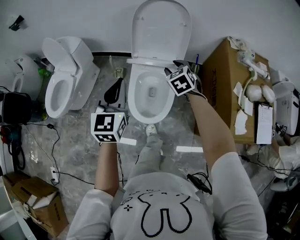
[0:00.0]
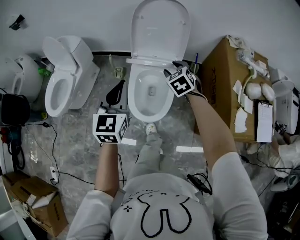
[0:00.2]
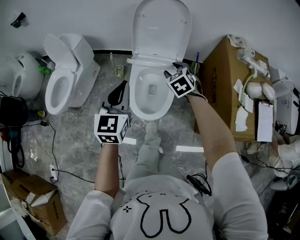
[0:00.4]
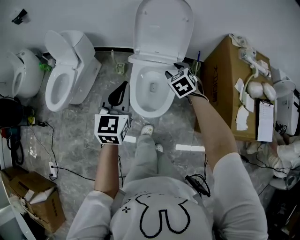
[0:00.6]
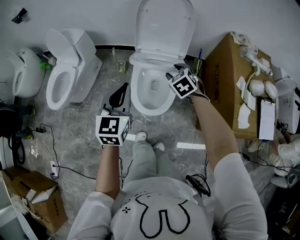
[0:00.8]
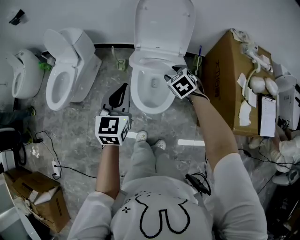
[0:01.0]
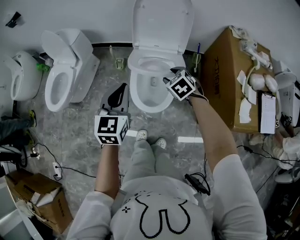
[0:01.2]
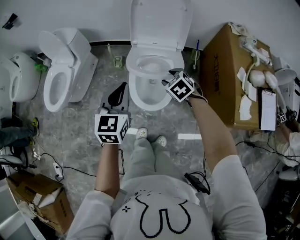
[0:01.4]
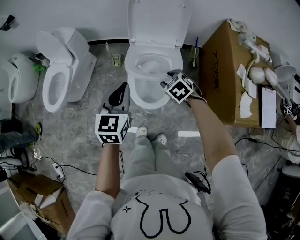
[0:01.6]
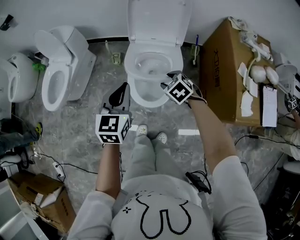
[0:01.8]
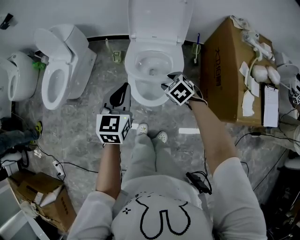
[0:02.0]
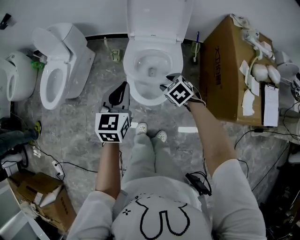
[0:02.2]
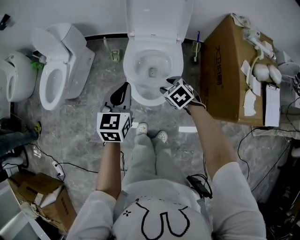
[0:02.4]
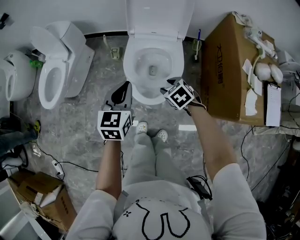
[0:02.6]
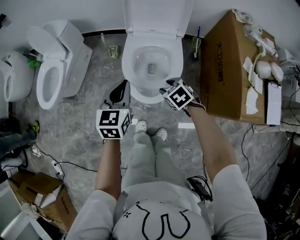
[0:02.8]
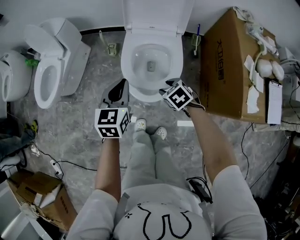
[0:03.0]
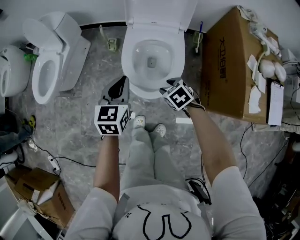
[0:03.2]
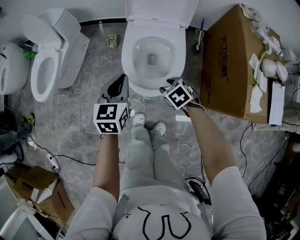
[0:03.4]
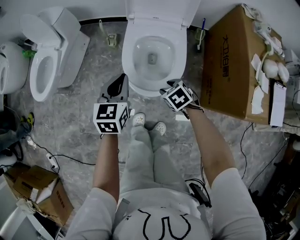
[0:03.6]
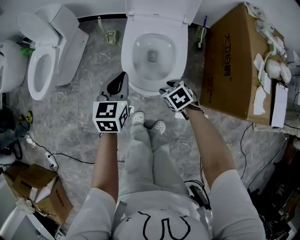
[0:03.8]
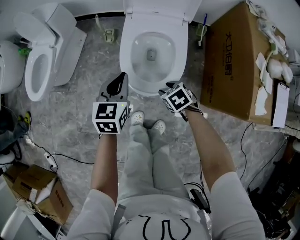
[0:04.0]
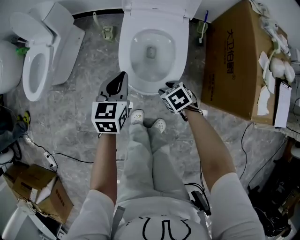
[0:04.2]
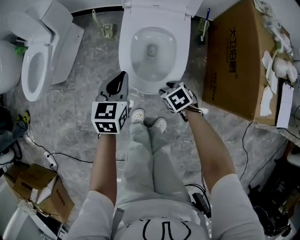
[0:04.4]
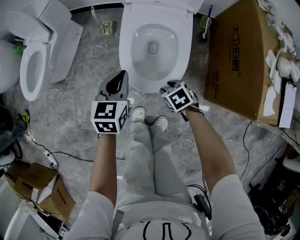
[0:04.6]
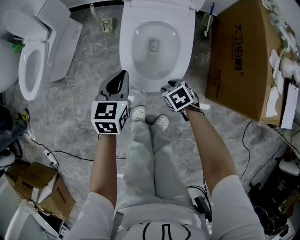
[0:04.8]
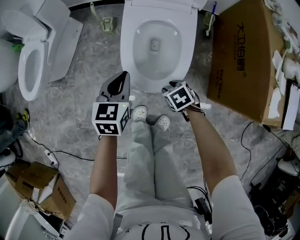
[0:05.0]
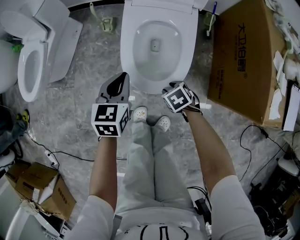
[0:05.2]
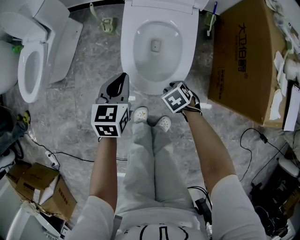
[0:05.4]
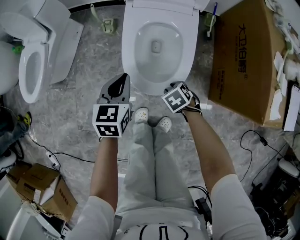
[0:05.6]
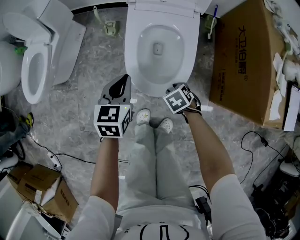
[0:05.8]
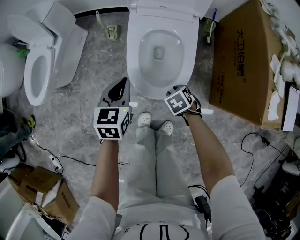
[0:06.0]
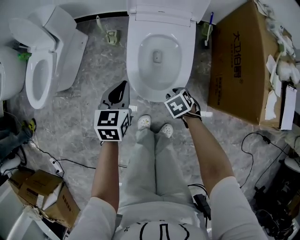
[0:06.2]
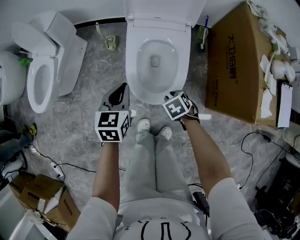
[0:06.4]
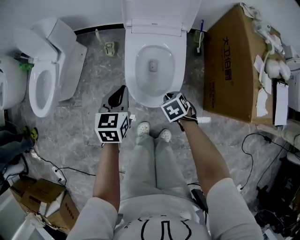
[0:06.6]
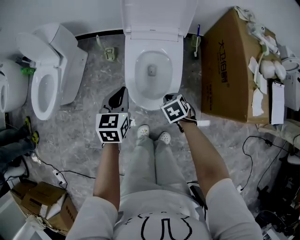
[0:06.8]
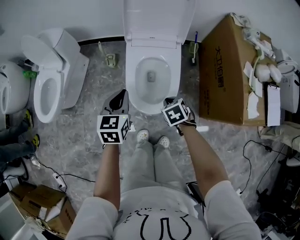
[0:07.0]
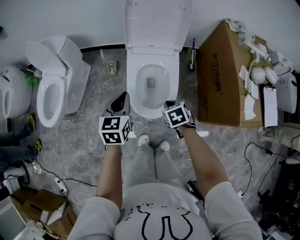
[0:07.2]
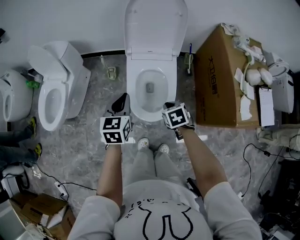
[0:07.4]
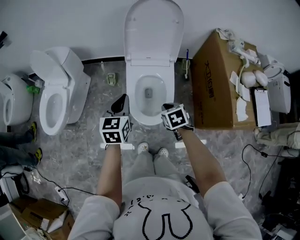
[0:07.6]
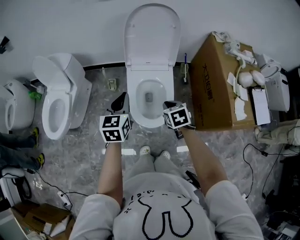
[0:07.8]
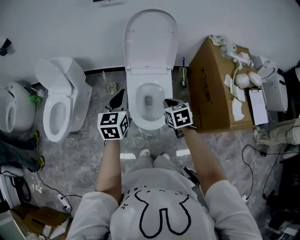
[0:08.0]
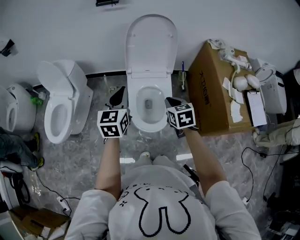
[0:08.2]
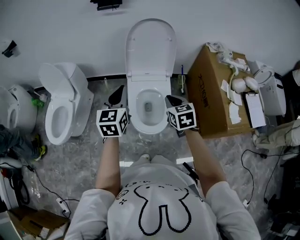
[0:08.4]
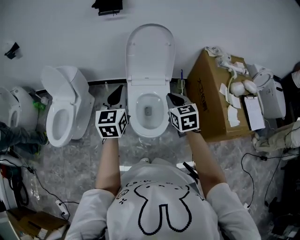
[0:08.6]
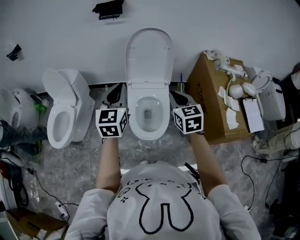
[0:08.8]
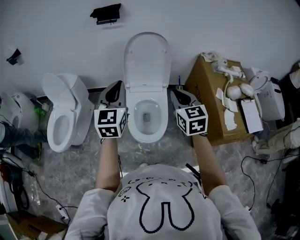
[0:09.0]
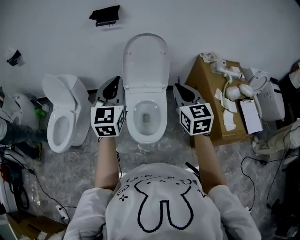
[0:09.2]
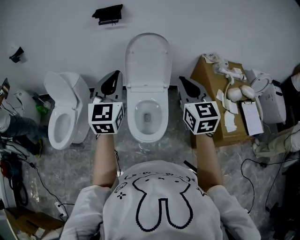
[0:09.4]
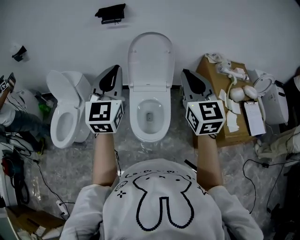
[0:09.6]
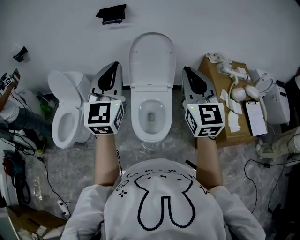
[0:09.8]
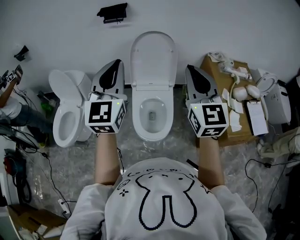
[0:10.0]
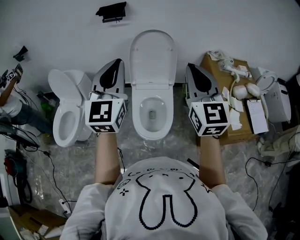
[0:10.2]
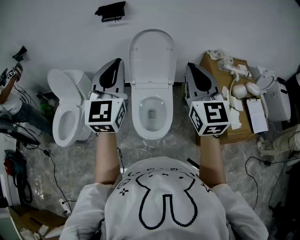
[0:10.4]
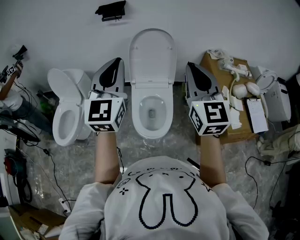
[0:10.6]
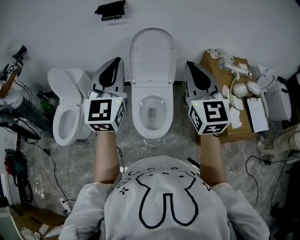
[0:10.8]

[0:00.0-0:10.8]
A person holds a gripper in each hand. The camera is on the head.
0:00.0 to 0:01.6: The left gripper moves downward, roughly 5 cm. Meanwhile the right gripper shifts roughly 15 cm backward and downward.
0:01.6 to 0:03.0: The right gripper is displaced downward and backward by roughly 10 cm, while the left gripper shifts approximately 10 cm downward.
0:03.0 to 0:04.6: Both grippers travel together downward, about 15 cm.
0:04.6 to 0:06.2: The grippers make only small movements.
0:06.2 to 0:07.8: The grippers both shift upward by approximately 25 cm. The right gripper rotates approximately 30 degrees, and closes its fingers.
0:07.8 to 0:09.2: The two grippers go approximately 25 cm upward. The left gripper changes its angle by approximately 30 degrees; the right gripper tips its fingers upward by approximately 40 degrees.
0:09.2 to 0:10.8: Both grippers travel together upward, approximately 10 cm.

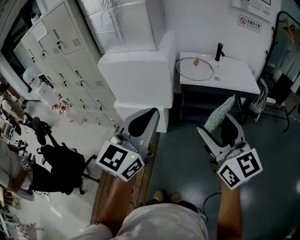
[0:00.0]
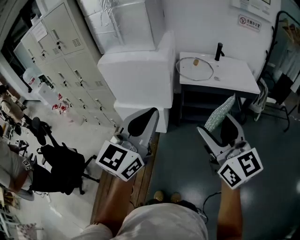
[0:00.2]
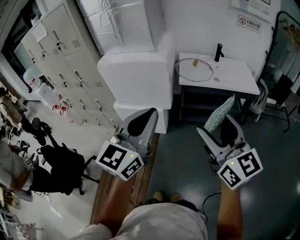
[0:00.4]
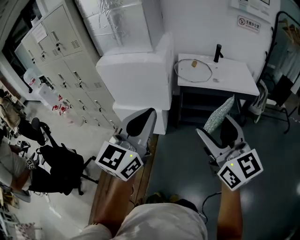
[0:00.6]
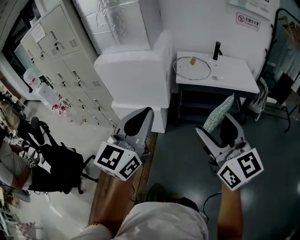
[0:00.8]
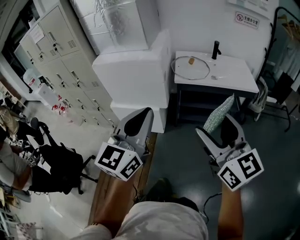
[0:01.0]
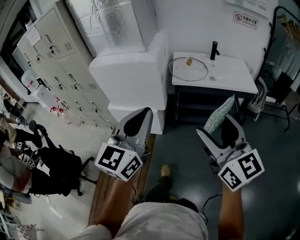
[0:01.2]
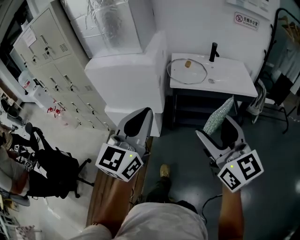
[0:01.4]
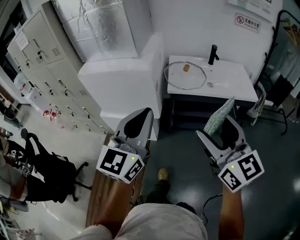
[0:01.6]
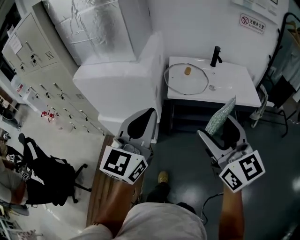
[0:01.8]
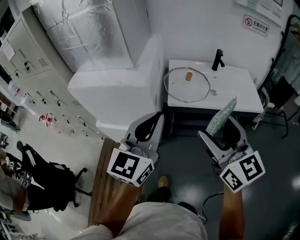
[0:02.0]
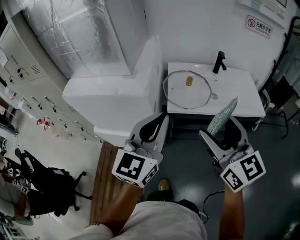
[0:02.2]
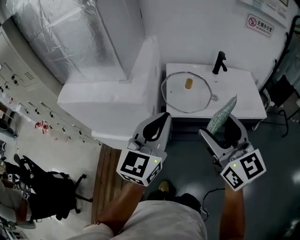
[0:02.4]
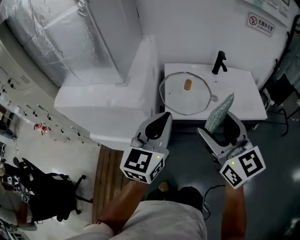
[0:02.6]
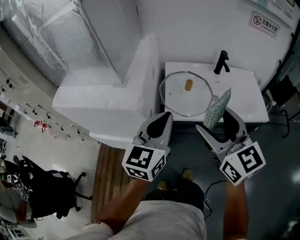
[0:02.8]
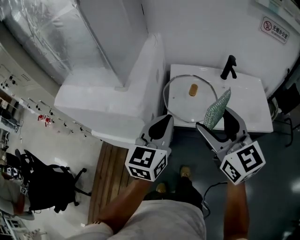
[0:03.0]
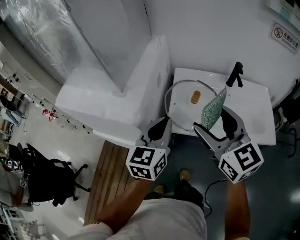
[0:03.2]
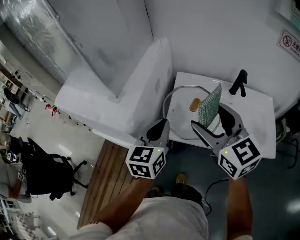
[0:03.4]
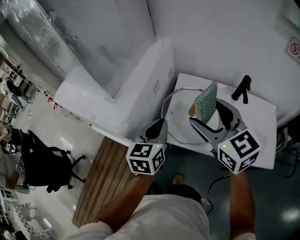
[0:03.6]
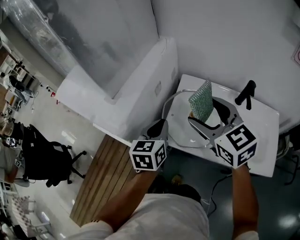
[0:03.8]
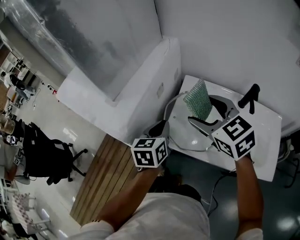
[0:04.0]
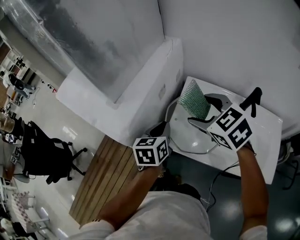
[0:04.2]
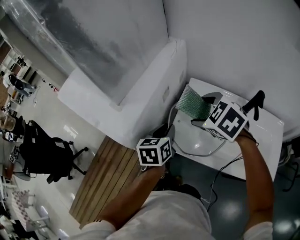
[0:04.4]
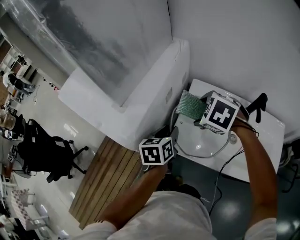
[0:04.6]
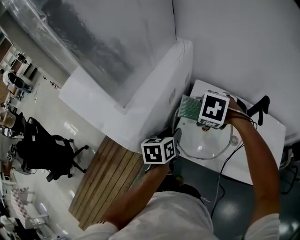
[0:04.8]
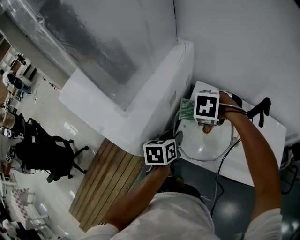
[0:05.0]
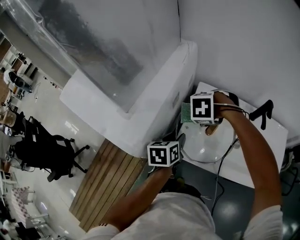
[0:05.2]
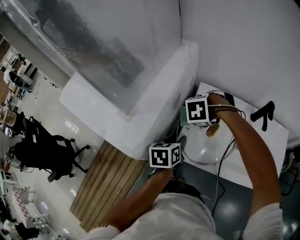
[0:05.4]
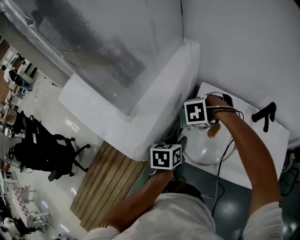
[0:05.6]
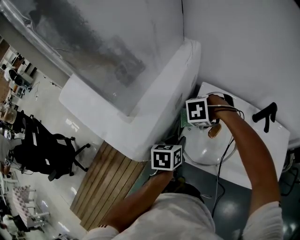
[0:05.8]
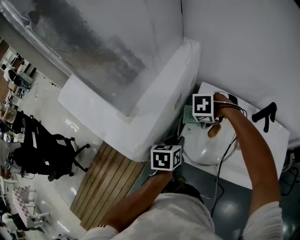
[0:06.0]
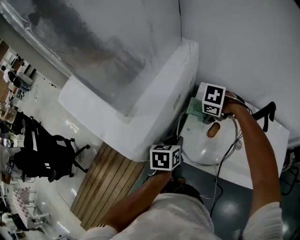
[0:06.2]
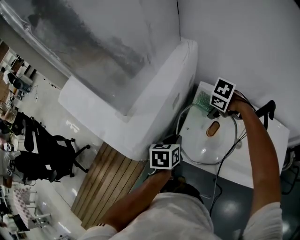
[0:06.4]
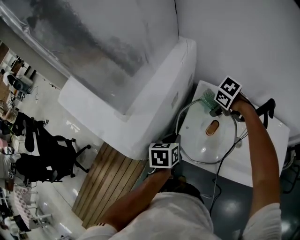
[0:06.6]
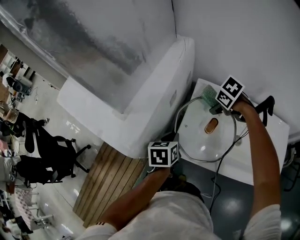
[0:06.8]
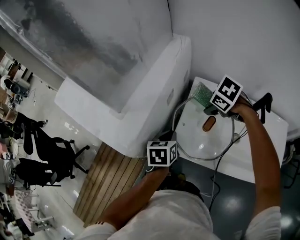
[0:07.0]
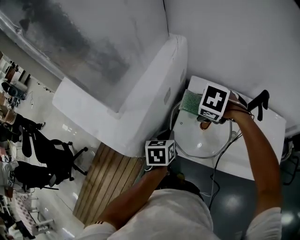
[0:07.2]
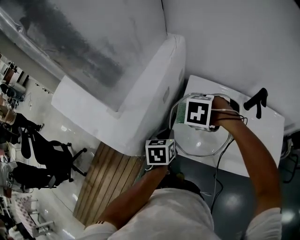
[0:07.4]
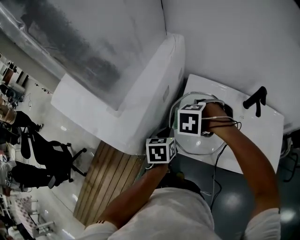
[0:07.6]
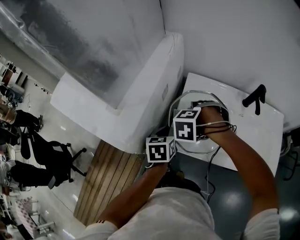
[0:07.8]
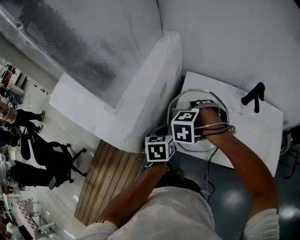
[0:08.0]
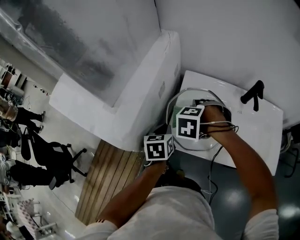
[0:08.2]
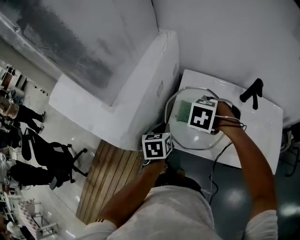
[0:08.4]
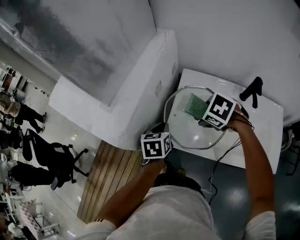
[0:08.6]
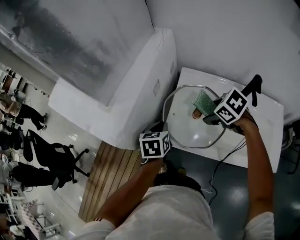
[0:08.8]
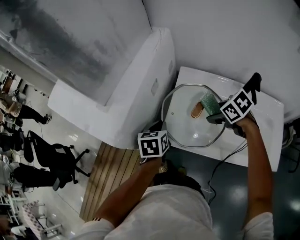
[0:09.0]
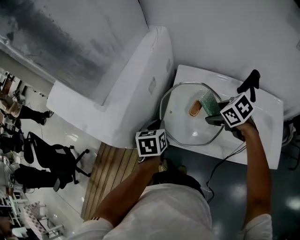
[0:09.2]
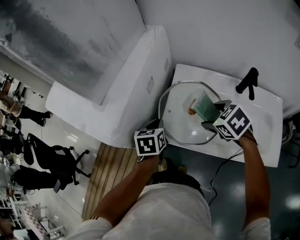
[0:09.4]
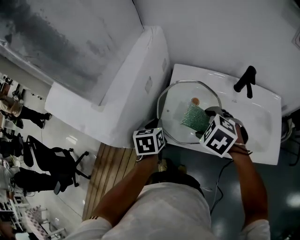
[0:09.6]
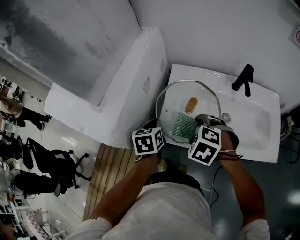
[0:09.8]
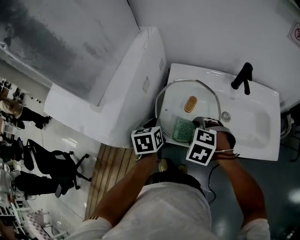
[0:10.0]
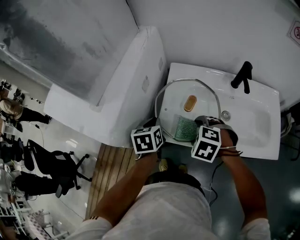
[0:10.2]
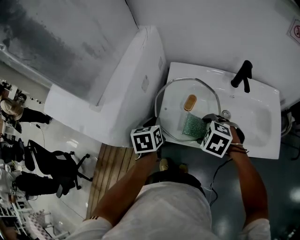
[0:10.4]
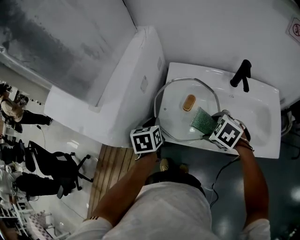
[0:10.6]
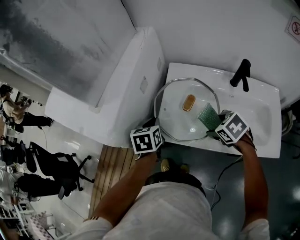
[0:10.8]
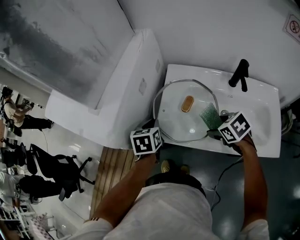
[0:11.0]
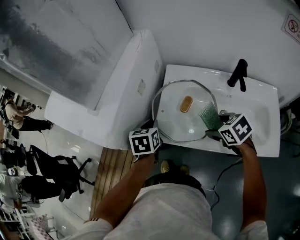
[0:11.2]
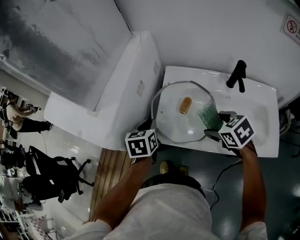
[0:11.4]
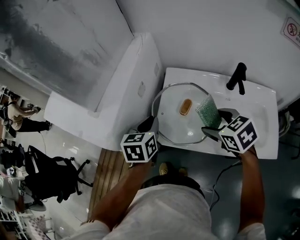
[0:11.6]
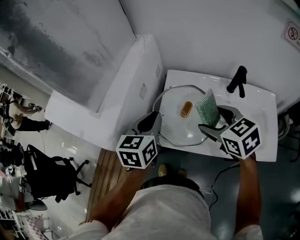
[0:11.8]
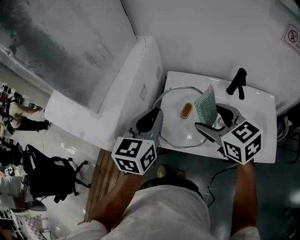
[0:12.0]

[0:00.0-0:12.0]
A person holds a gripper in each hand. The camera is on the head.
0:00.0 to 0:01.6: Both grippers travel together forward and to the right, about 15 cm.
0:01.6 to 0:03.0: Both grippers move forward, roughly 30 cm.
0:03.0 to 0:04.4: The left gripper is displaced downward and forward by approximately 20 cm, and rotates about 40 degrees. Meanwhile the right gripper is displaced forward and downward by approximately 25 cm, and tips its fingers downward by about 50 degrees.
0:04.4 to 0:06.0: The right gripper heads downward, covering about 15 cm, and angles its fingers downward, by roughly 30 degrees, while the left gripper moves downward, some 5 cm.
0:06.0 to 0:07.6: The right gripper changes place by roughly 10 cm.
0:07.6 to 0:09.0: The right gripper moves about 15 cm, and twists about 50 degrees clockwise, seen from behind.
0:09.0 to 0:10.4: The right gripper travels backward and to the left by some 10 cm, and changes its angle by approximately 30 degrees.
0:10.4 to 0:12.0: The grippers both shift upward by some 20 cm. The left gripper rotates approximately 30 degrees. Meanwhile the right gripper points its fingers approximately 40 degrees further upward.

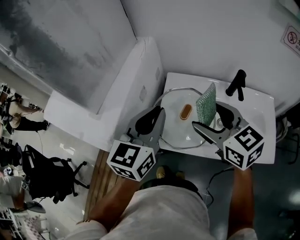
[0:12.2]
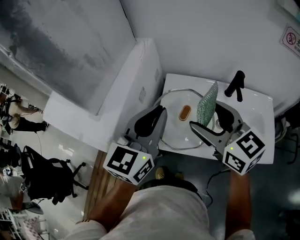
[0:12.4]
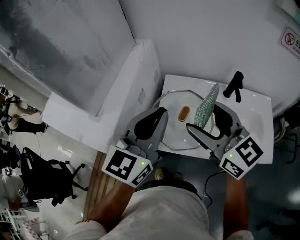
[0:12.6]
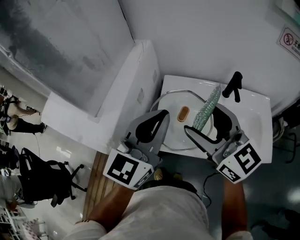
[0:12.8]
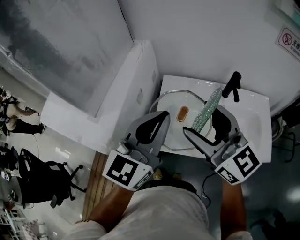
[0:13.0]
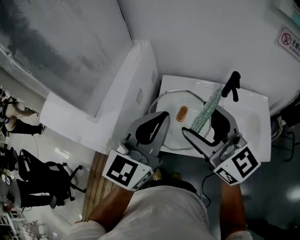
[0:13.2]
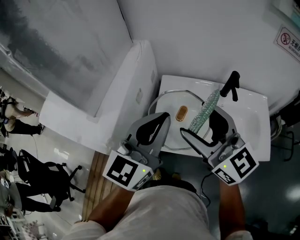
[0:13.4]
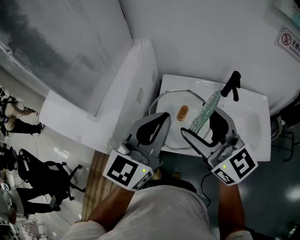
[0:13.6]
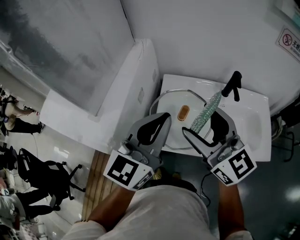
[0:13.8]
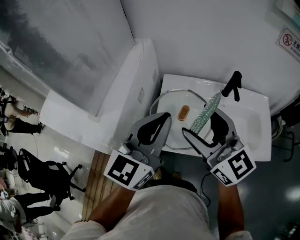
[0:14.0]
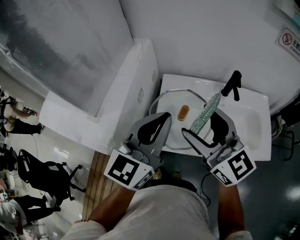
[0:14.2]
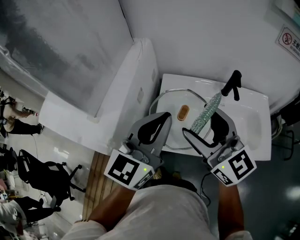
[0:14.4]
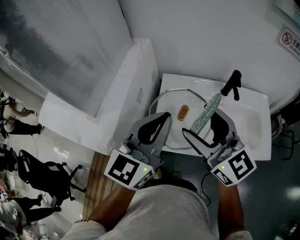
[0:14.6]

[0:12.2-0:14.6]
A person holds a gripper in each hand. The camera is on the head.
0:12.2 to 0:13.4: The right gripper travels upward by about 5 cm, and swivels some 20 degrees. The left gripper changes place by some 5 cm.
0:13.4 to 0:14.6: The grippers stay close to where they were, moving slightly.
